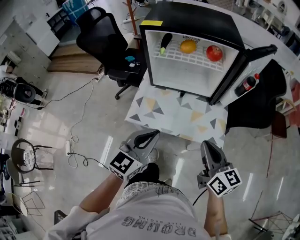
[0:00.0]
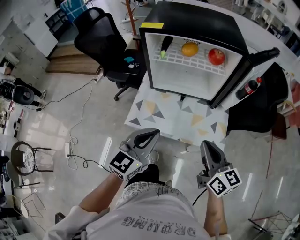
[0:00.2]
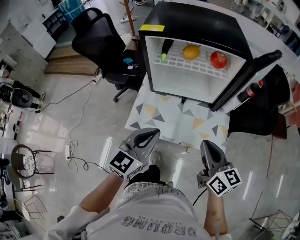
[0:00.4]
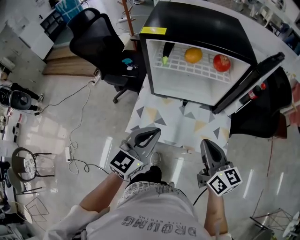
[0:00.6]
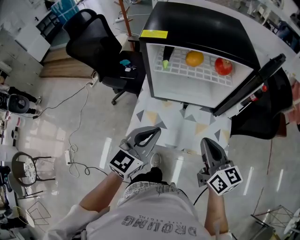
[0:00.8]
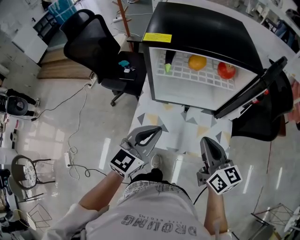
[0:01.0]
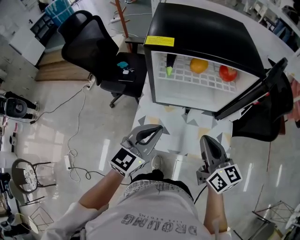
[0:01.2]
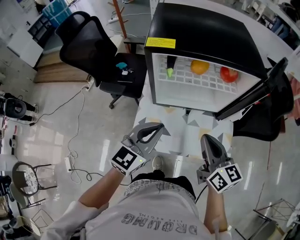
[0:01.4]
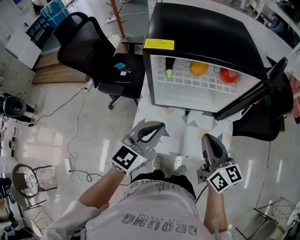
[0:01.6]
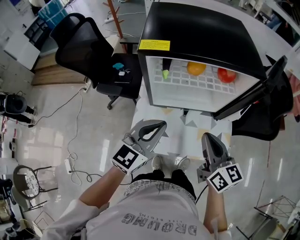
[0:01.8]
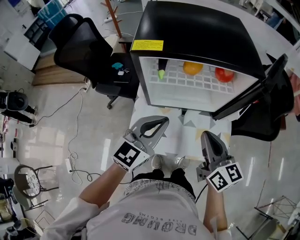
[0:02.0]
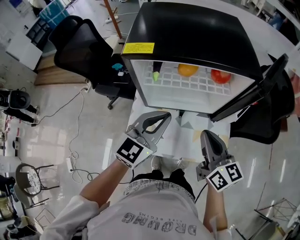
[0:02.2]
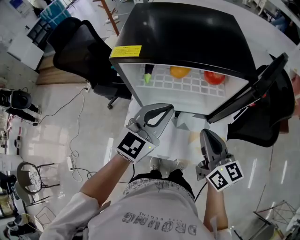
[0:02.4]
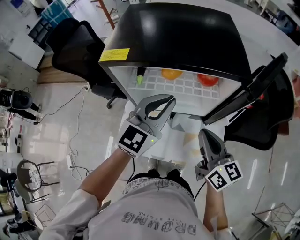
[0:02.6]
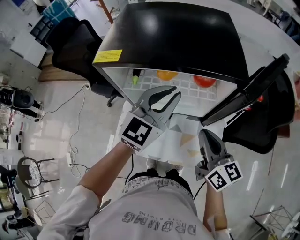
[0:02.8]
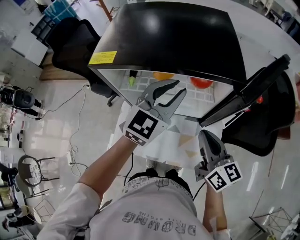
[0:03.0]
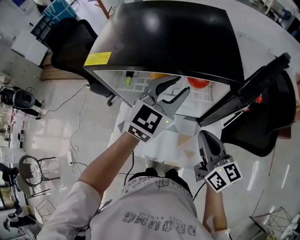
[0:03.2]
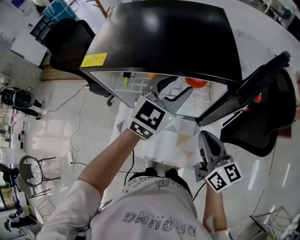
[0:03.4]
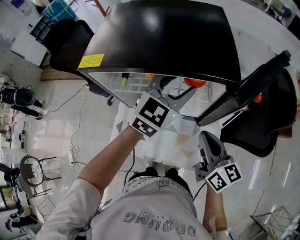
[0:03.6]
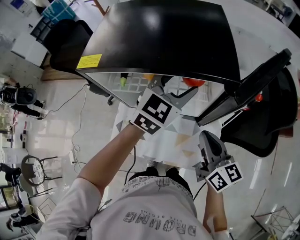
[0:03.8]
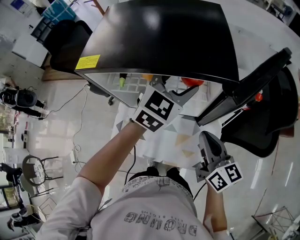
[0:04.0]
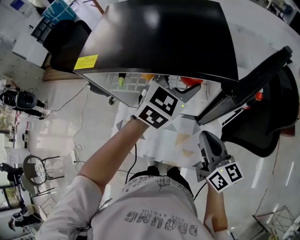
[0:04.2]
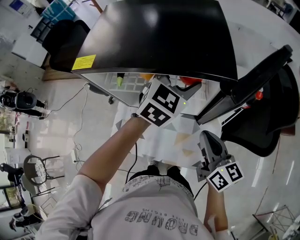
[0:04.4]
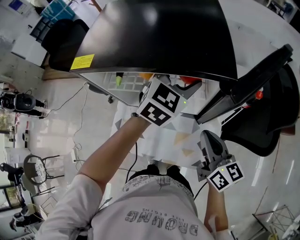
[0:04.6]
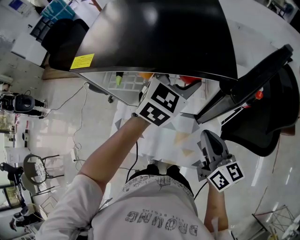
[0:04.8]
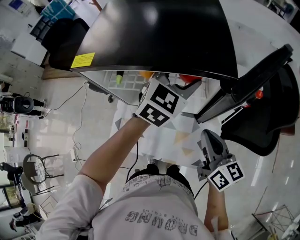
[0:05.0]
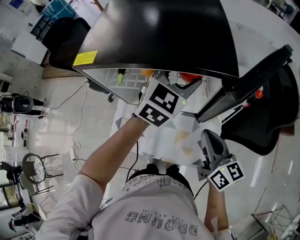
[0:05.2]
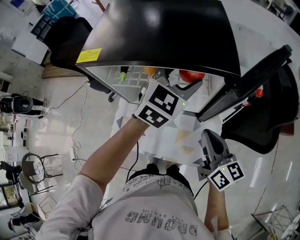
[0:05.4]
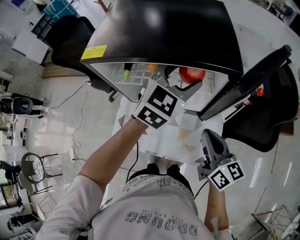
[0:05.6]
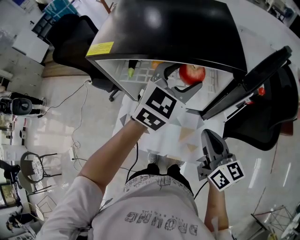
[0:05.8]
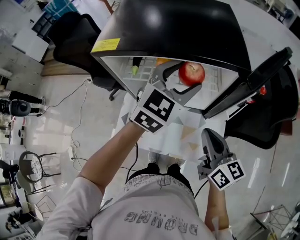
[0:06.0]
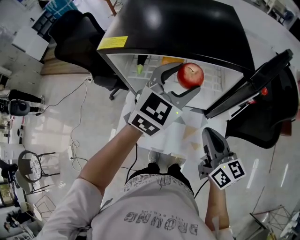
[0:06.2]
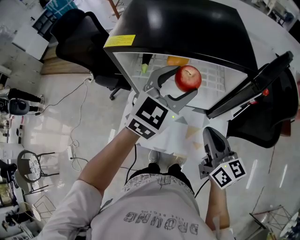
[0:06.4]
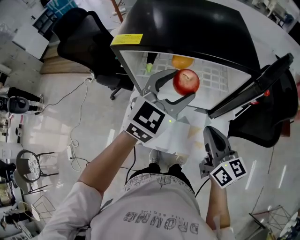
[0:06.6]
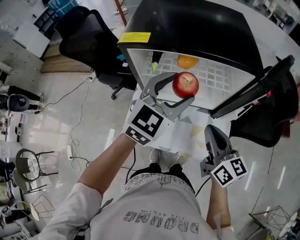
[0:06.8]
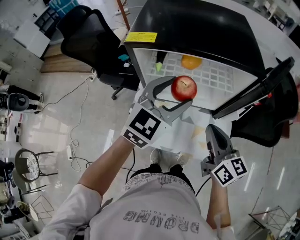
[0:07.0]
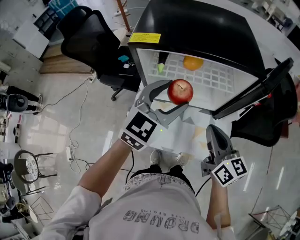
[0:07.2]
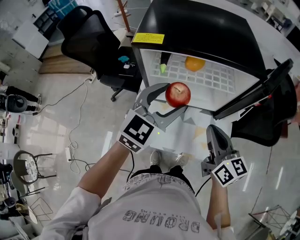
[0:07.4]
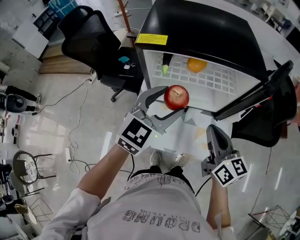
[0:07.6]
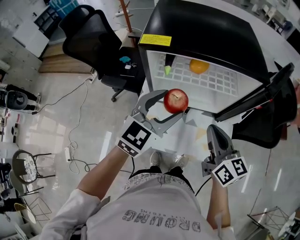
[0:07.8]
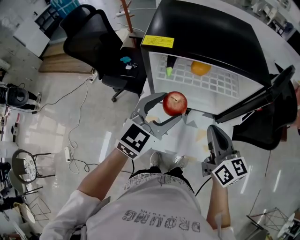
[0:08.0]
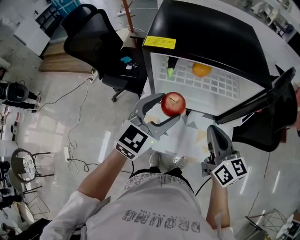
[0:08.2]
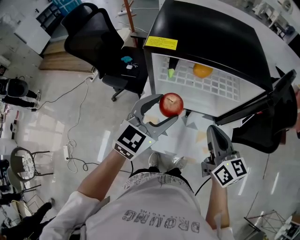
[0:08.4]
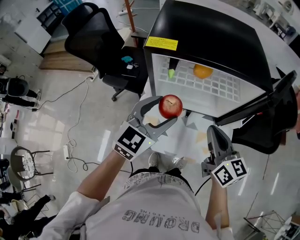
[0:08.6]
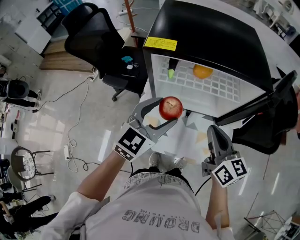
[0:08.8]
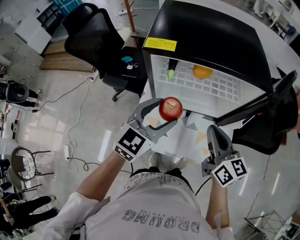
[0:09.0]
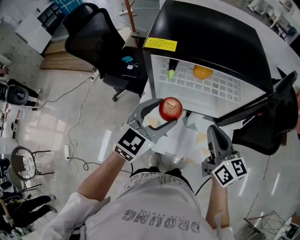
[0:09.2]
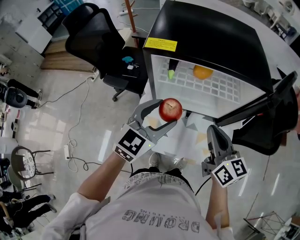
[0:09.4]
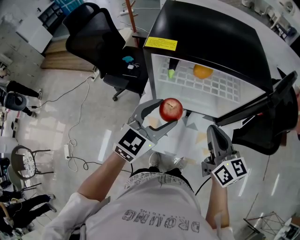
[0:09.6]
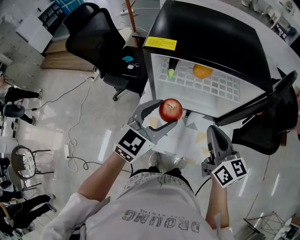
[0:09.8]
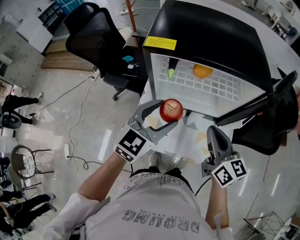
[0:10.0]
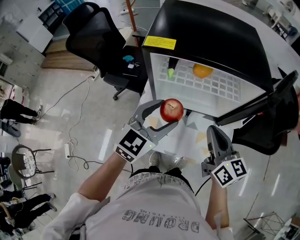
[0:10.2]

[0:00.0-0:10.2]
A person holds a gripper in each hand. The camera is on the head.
0:00.0 to 0:01.4: The grippers both shift forward and to the left by roughly 15 cm.
0:01.4 to 0:03.0: The left gripper moves forward and to the right, approximately 25 cm, while the right gripper goes roughly 15 cm to the right and forward.
0:03.0 to 0:04.4: The left gripper travels to the right and forward by some 10 cm, and opens; the right gripper ends up roughly 5 cm from where it was.
0:04.4 to 0:05.8: The left gripper ends up some 5 cm from where it was.
0:05.8 to 0:07.2: The left gripper is displaced to the left and backward by some 15 cm. Meanwhile the right gripper goes roughly 10 cm to the left.
0:07.2 to 0:08.8: The left gripper heads to the left, covering approximately 5 cm.
0:08.8 to 0:10.2: Both grippers stay about where they are.

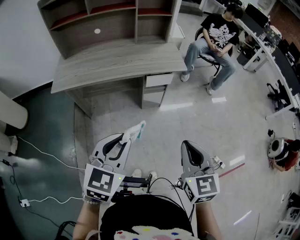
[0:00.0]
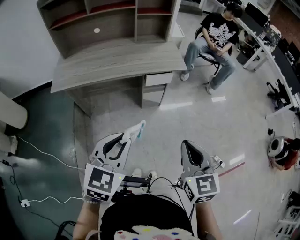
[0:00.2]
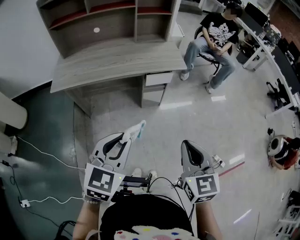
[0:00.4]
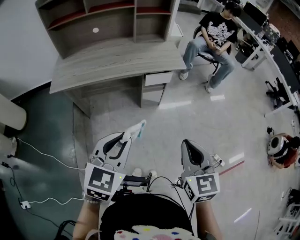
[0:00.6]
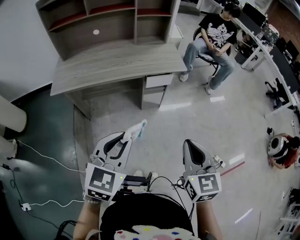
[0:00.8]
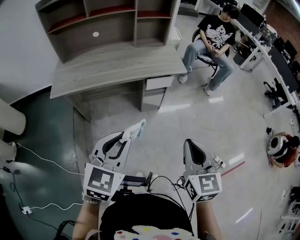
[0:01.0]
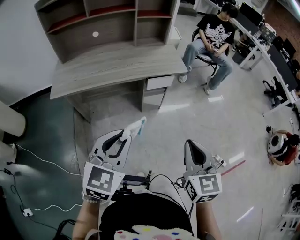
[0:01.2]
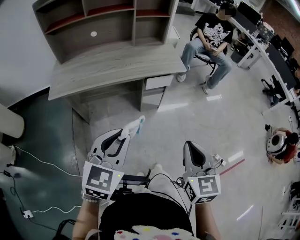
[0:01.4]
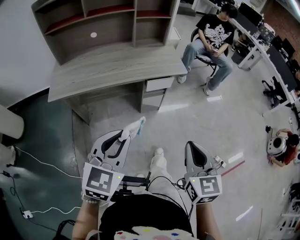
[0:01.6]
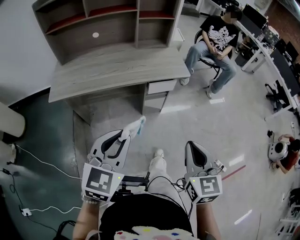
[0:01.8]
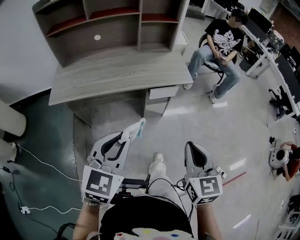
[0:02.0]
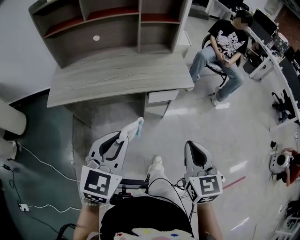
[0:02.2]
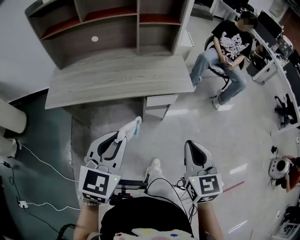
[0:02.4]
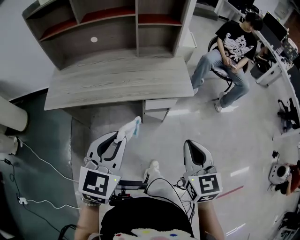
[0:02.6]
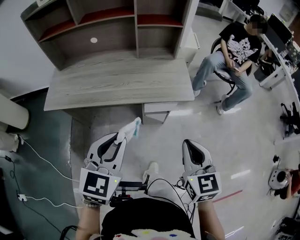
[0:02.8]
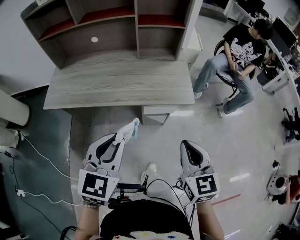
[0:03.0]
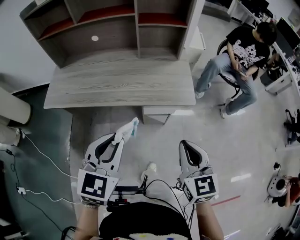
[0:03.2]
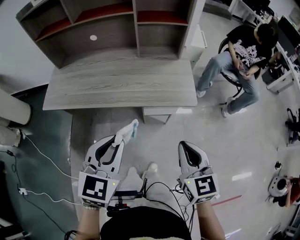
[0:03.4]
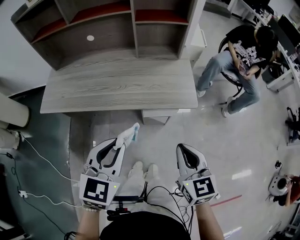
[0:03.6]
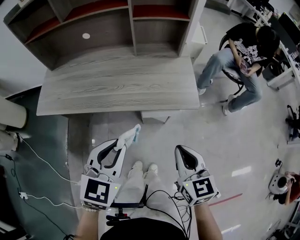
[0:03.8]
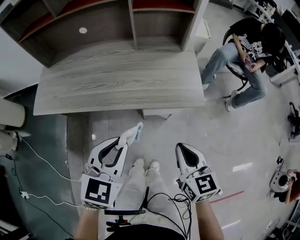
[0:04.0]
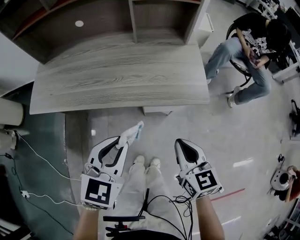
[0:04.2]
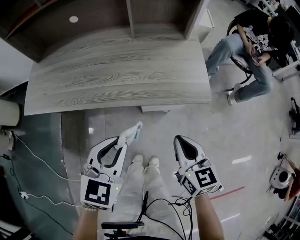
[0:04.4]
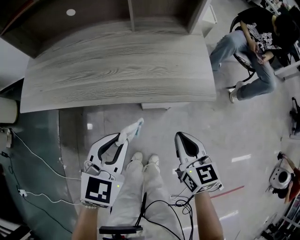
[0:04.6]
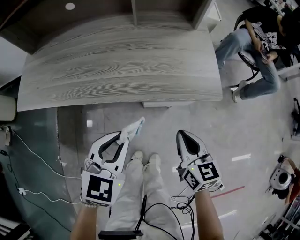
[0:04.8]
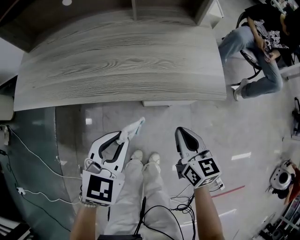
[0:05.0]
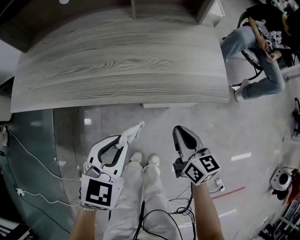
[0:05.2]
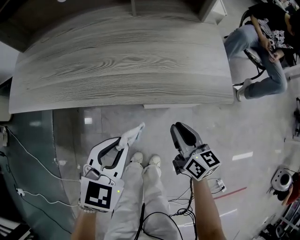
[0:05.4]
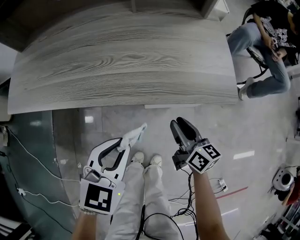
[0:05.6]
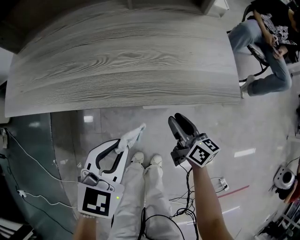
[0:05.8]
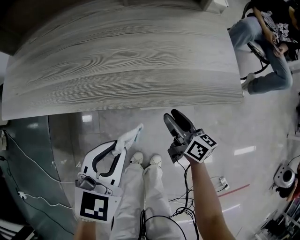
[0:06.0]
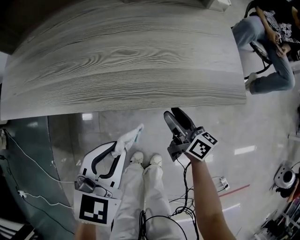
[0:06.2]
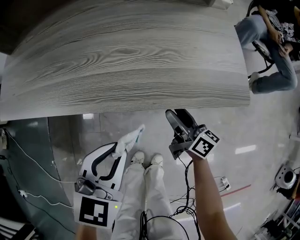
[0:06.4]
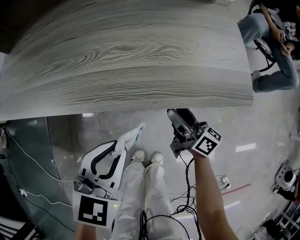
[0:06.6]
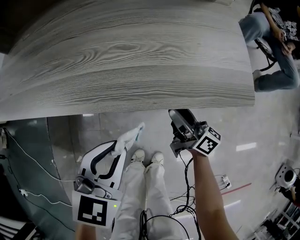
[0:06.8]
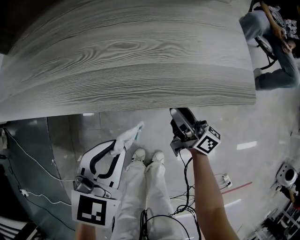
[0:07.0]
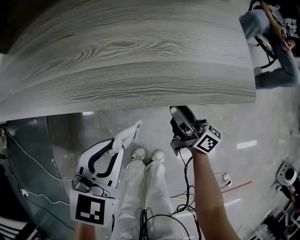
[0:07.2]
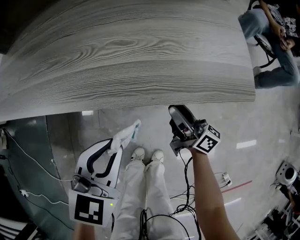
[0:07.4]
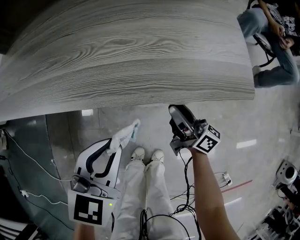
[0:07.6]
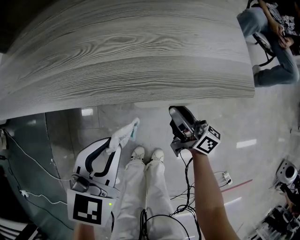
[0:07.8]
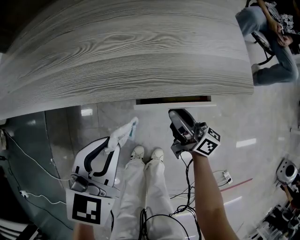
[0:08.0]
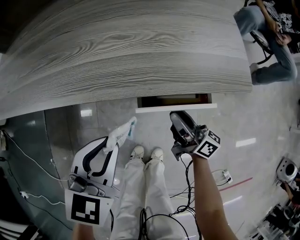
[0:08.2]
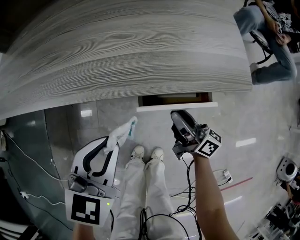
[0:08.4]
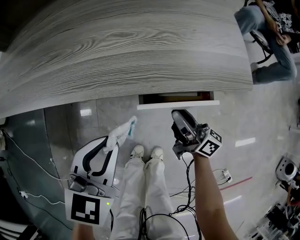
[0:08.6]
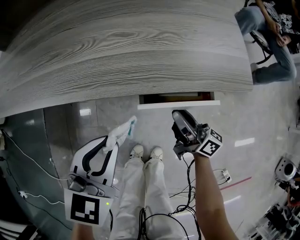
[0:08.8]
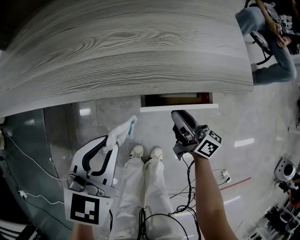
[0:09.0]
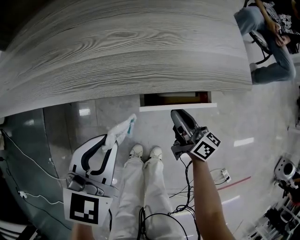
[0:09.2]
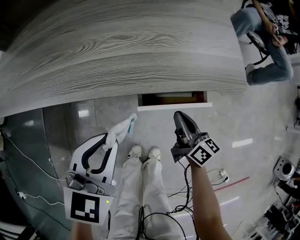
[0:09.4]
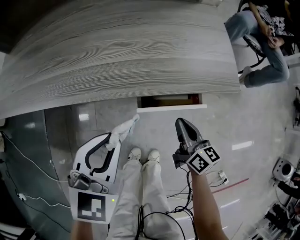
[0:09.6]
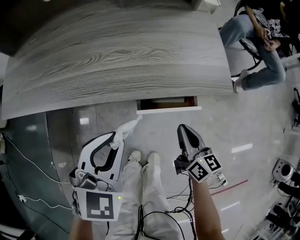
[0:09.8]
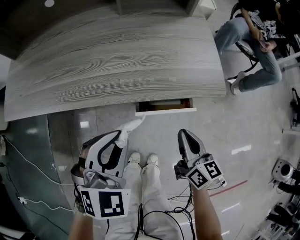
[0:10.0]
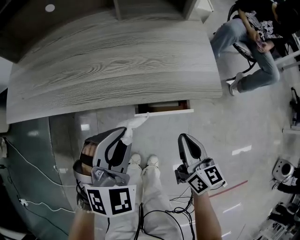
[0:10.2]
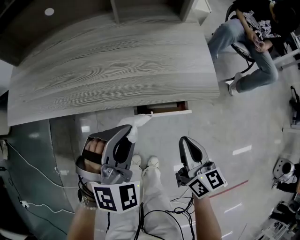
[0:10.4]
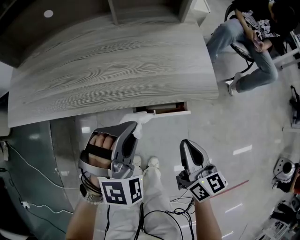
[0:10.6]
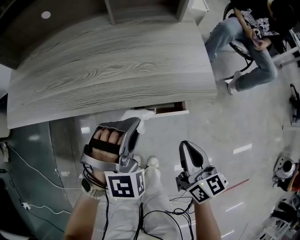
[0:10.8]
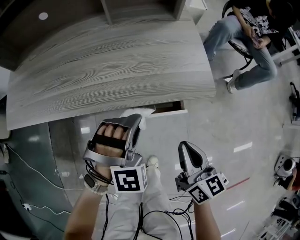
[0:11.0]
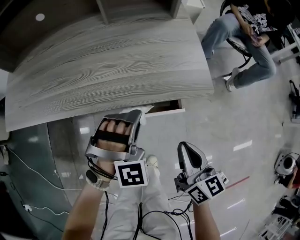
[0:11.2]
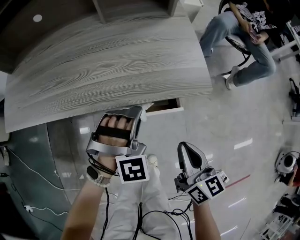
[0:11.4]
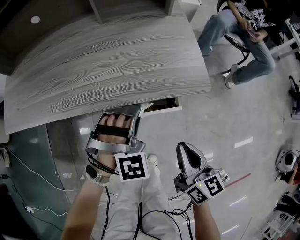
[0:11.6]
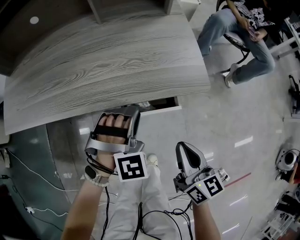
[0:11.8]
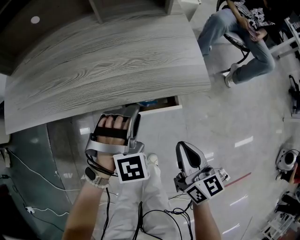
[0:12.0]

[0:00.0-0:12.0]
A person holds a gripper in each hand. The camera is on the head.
0:00.0 to 0:01.6: The left gripper ends up approximately 5 cm from where it was.
0:01.6 to 0:03.0: The right gripper is displaced forward by about 30 cm. Meanwhile the left gripper heads forward and to the right, covering about 25 cm.
0:03.0 to 0:04.4: Both grippers move downward and forward, some 20 cm.
0:04.4 to 0:06.0: The left gripper shifts approximately 15 cm downward, while the right gripper is displaced downward and forward by roughly 25 cm, turns by approximately 40 degrees, and opens.
0:06.0 to 0:07.6: The right gripper changes its angle by approximately 20 degrees.
0:07.6 to 0:09.0: The grippers move only a little.
0:09.0 to 0:10.4: The left gripper is displaced upward and to the right by roughly 10 cm, and rotates around the line of its fingers by about 50 degrees, clockwise from behind. Meanwhile the right gripper heads upward and backward, covering approximately 20 cm, and swivels approximately 40 degrees.
0:10.4 to 0:12.0: The left gripper goes some 10 cm downward and to the right, and changes its angle by roughly 30 degrees.

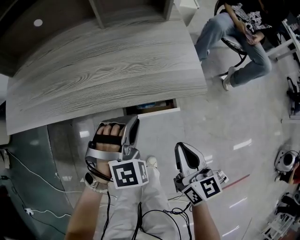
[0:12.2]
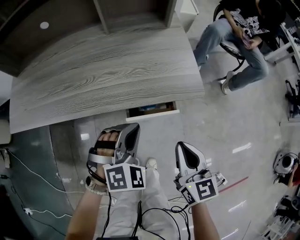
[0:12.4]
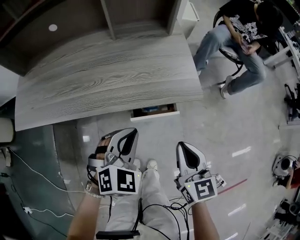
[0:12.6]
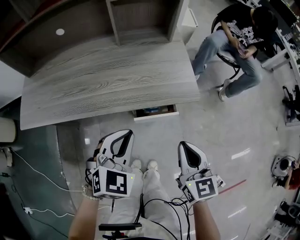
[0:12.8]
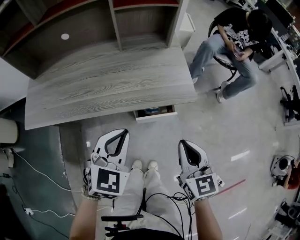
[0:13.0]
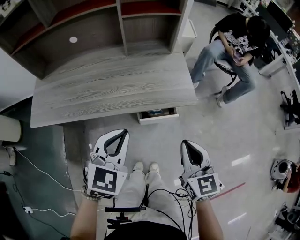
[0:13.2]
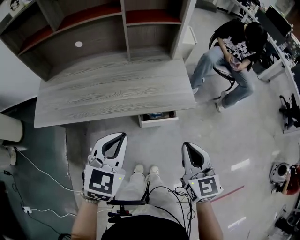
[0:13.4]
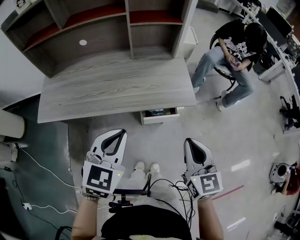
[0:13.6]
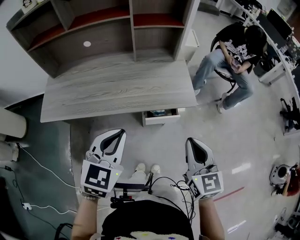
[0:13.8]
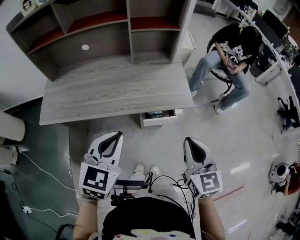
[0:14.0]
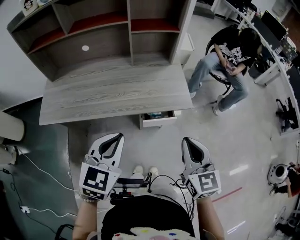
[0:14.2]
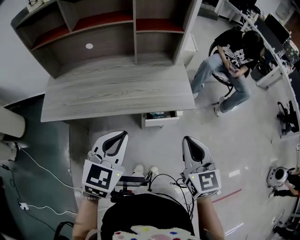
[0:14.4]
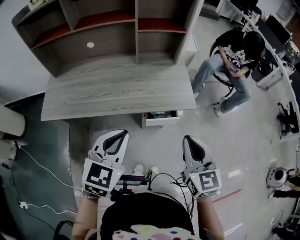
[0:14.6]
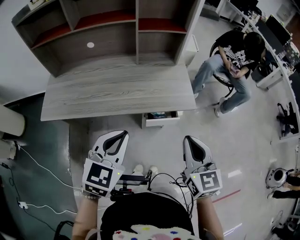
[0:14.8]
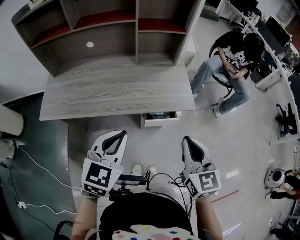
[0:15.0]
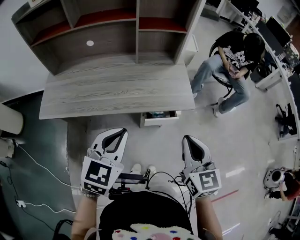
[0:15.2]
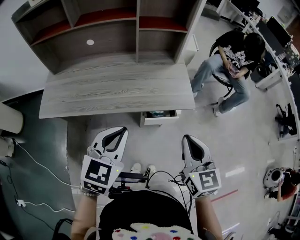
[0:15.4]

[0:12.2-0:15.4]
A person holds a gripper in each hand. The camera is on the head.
0:12.2 to 0:13.8: The right gripper shifts roughly 25 cm upward, and turns by roughly 20 degrees. Meanwhile the left gripper shifts approximately 35 cm upward, backward and to the left, and rotates around the line of its fingers by some 50 degrees, counterclockwise from behind.
0:13.8 to 0:15.4: The grippers make only small movements.
